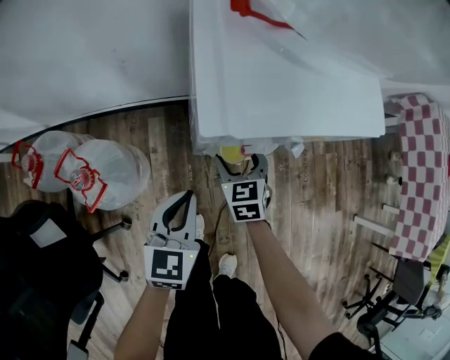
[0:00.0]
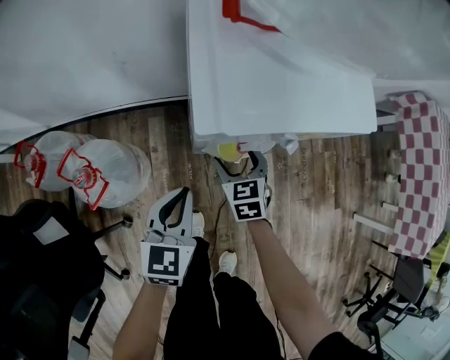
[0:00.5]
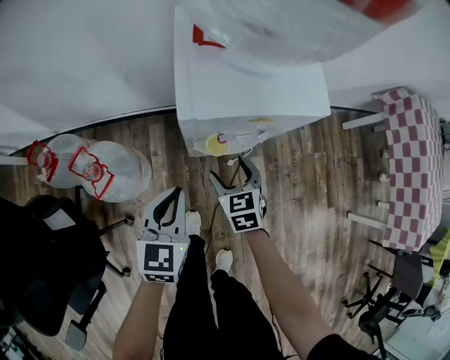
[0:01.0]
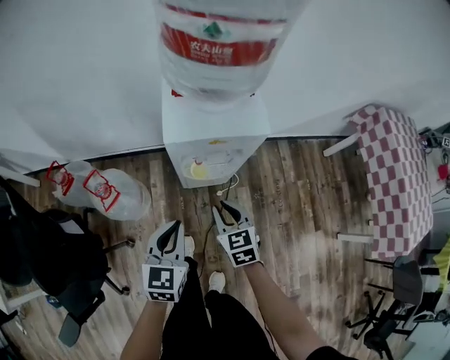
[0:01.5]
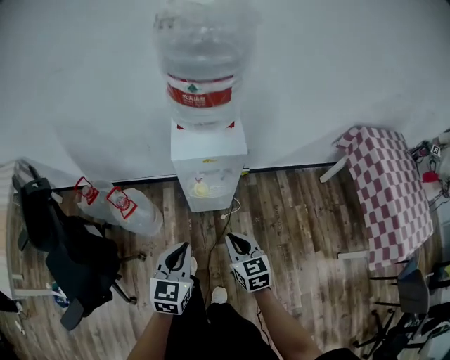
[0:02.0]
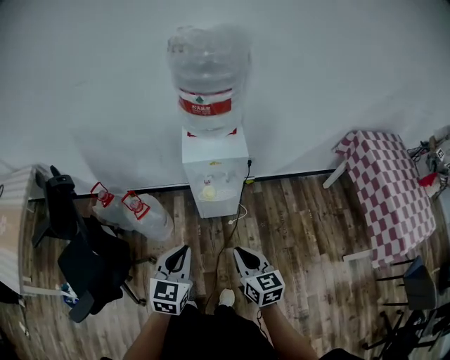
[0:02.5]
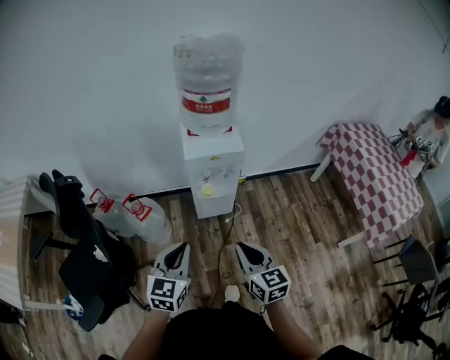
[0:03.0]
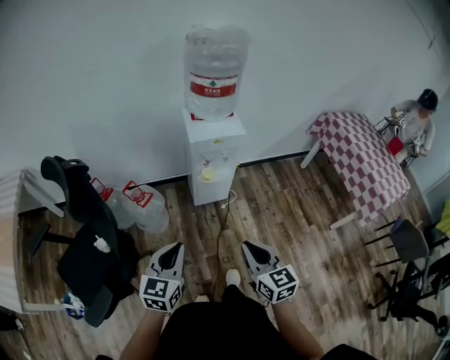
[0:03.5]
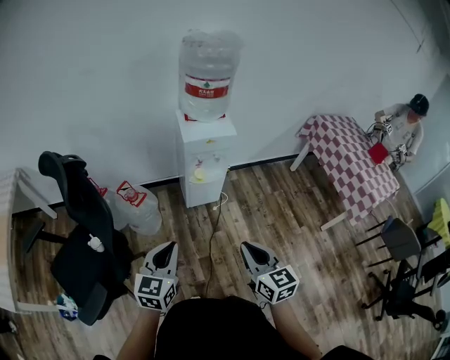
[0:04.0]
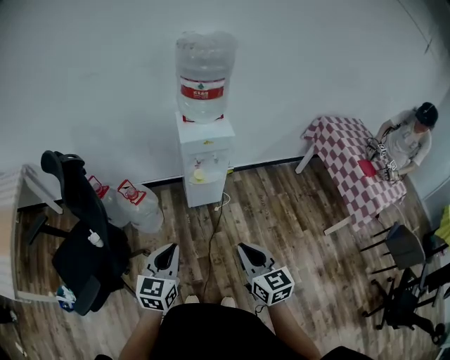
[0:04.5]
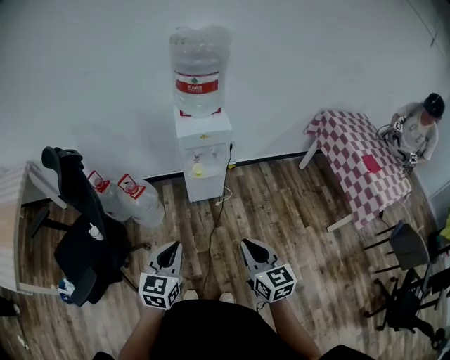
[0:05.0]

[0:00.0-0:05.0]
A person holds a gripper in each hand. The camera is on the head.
0:00.0 to 0:02.5: Both grippers move upward and backward, roughly 50 cm. The right gripper turns by some 30 degrees, and closes its fingers.
0:02.5 to 0:05.0: The two grippers go about 20 cm backward.

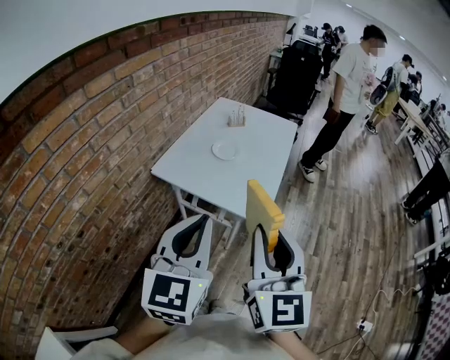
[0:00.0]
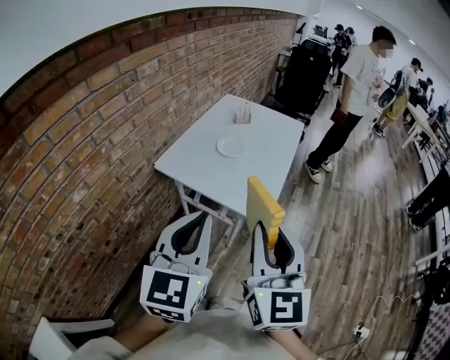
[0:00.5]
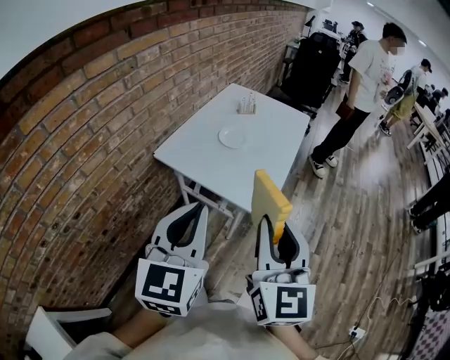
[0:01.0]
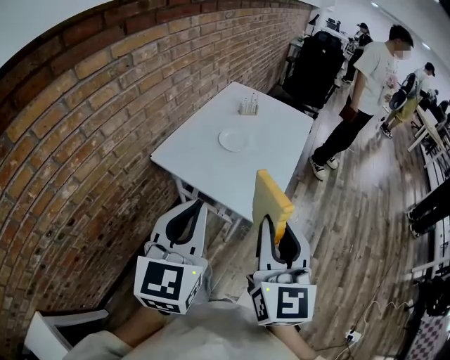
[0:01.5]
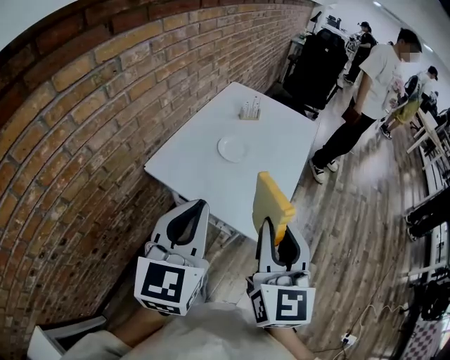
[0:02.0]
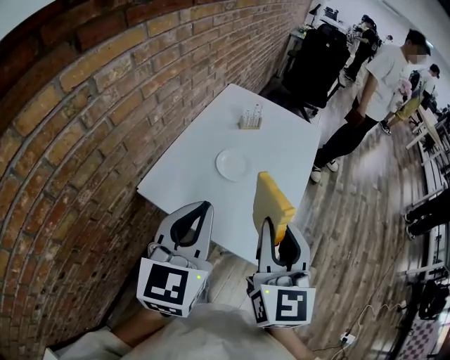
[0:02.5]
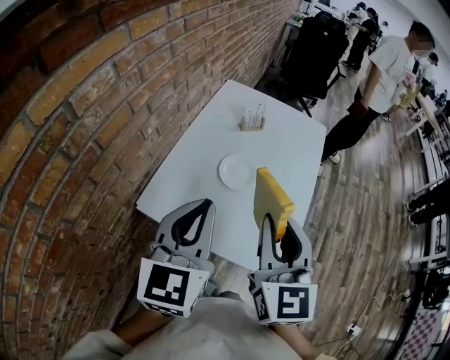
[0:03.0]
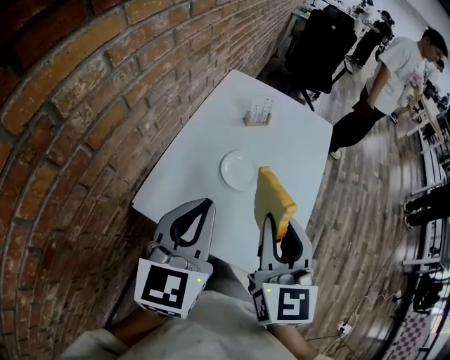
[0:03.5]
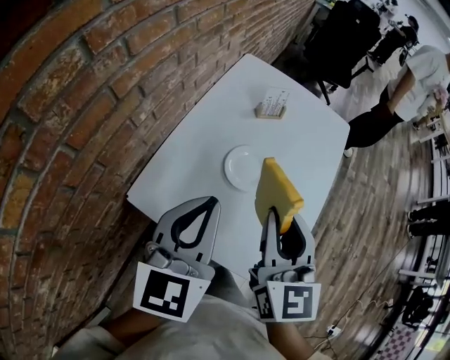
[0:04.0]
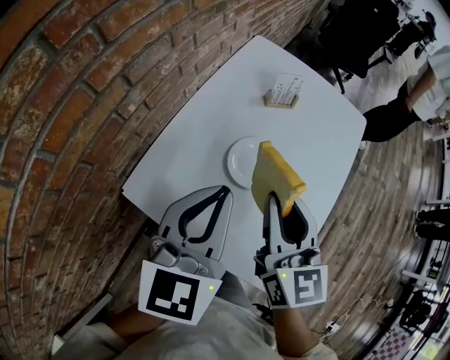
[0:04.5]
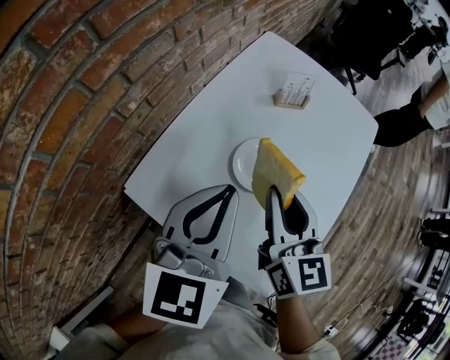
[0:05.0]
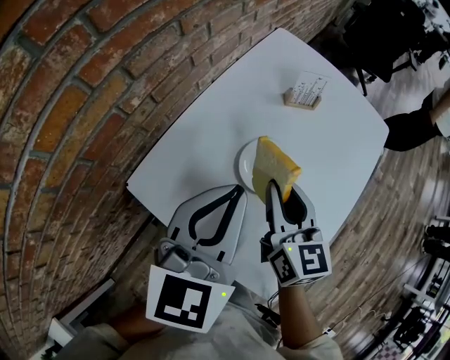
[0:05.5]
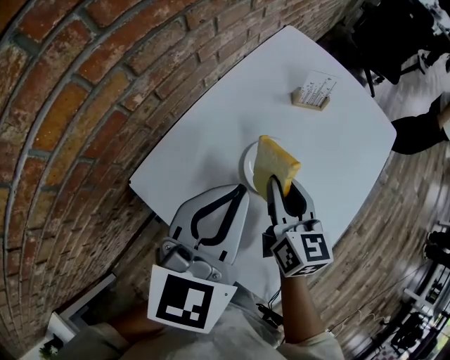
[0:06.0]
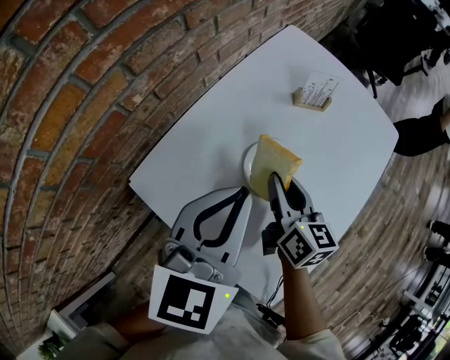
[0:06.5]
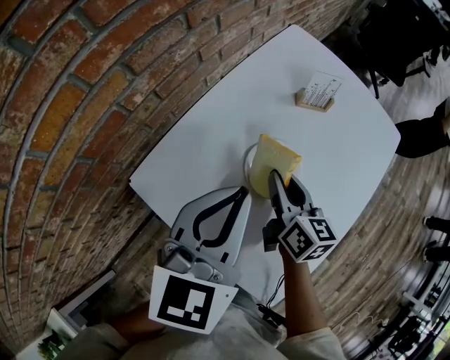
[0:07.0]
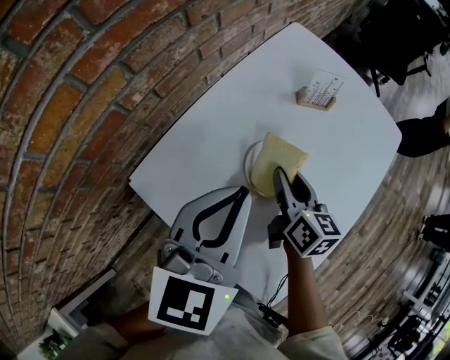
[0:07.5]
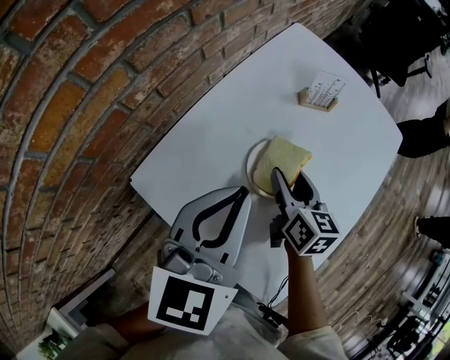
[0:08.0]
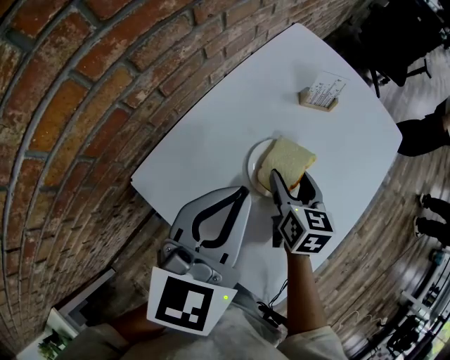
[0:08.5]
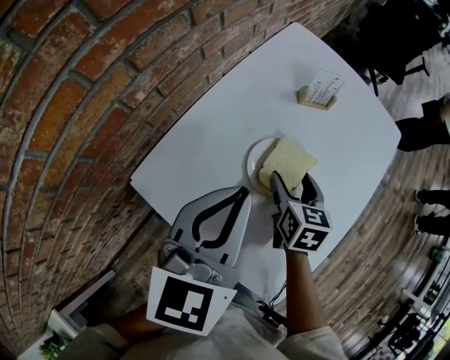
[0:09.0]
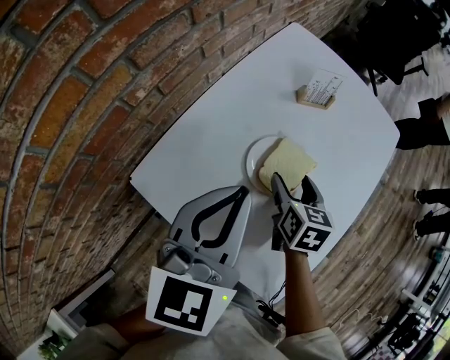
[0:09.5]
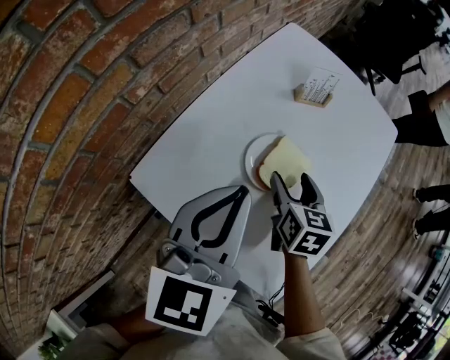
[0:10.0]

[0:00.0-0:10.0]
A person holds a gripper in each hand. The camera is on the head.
0:00.0 to 0:02.0: The two grippers go roughly 15 cm forward.
0:02.0 to 0:04.0: The two grippers go roughly 25 cm forward.
0:04.0 to 0:06.0: The right gripper moves downward and forward, roughly 20 cm, and rotates some 30 degrees. Meanwhile the left gripper shifts approximately 5 cm forward.
0:06.0 to 0:08.0: The right gripper is displaced downward by some 5 cm, and opens up.
0:08.0 to 0:10.0: There are only small adjustments of the grippers.

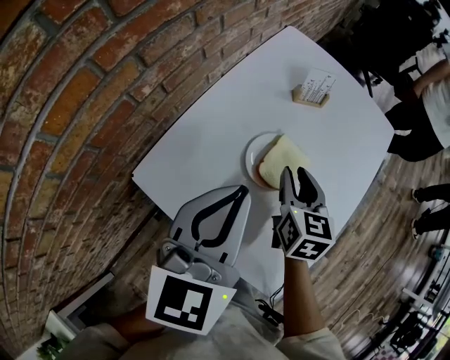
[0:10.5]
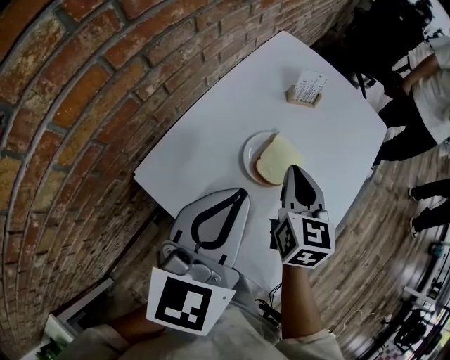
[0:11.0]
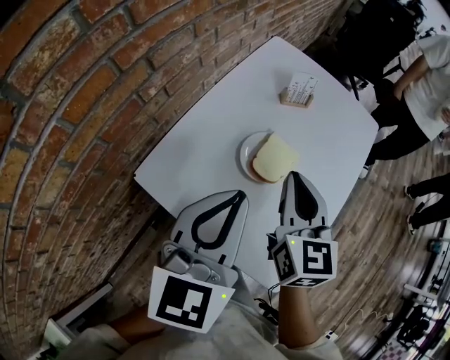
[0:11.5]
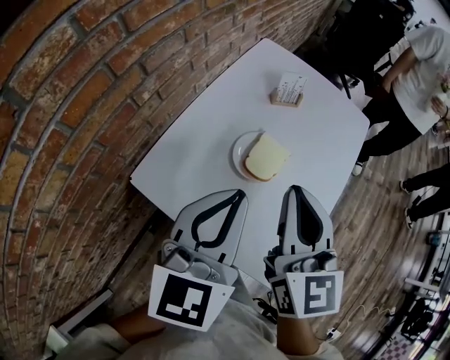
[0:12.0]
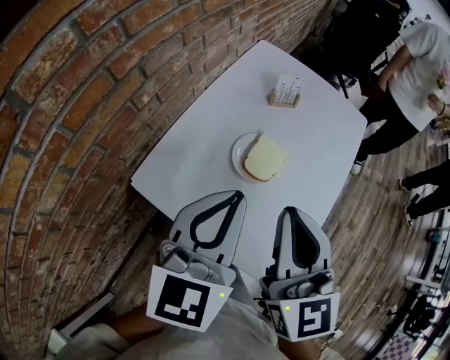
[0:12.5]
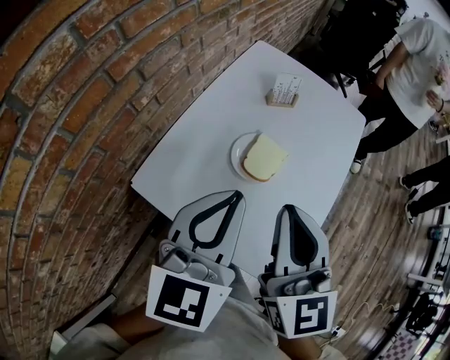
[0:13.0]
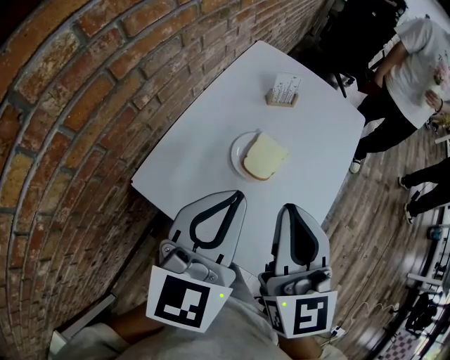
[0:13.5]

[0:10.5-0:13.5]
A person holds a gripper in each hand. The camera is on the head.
0:10.5 to 0:12.0: The left gripper ends up roughly 5 cm from where it was. The right gripper heads upward and backward, covering some 20 cm, swivels about 20 degrees, and closes up.
0:12.0 to 0:13.5: The grippers stay close to where they were, moving slightly.

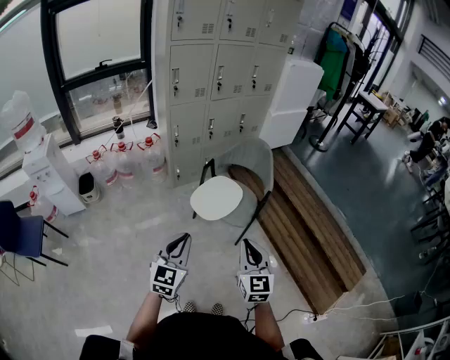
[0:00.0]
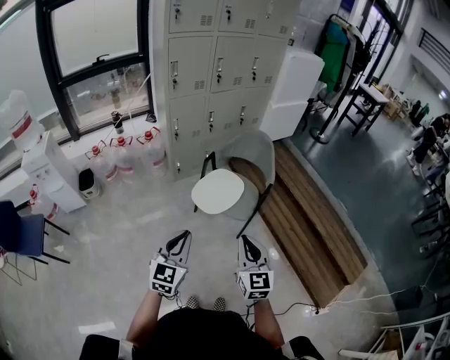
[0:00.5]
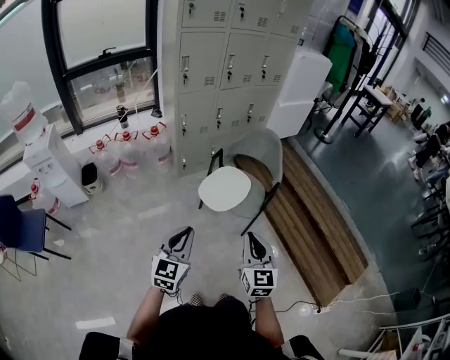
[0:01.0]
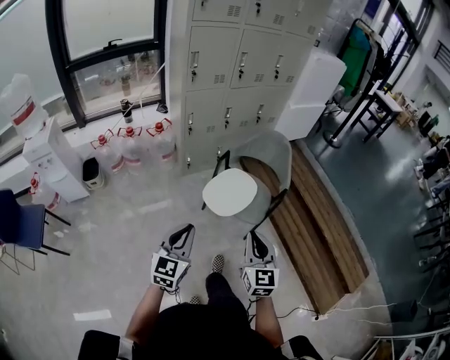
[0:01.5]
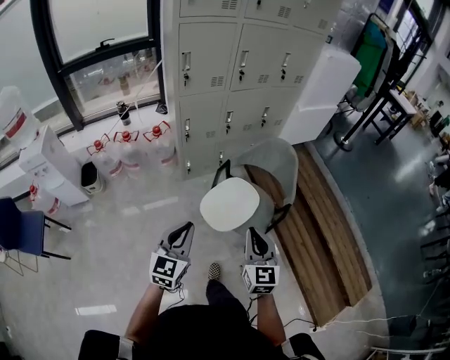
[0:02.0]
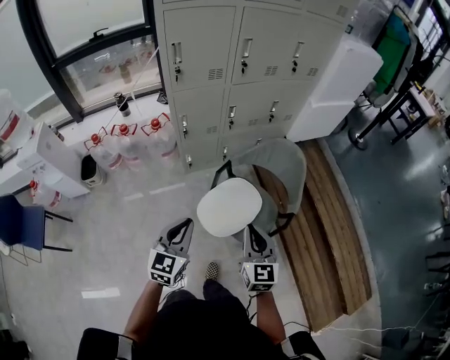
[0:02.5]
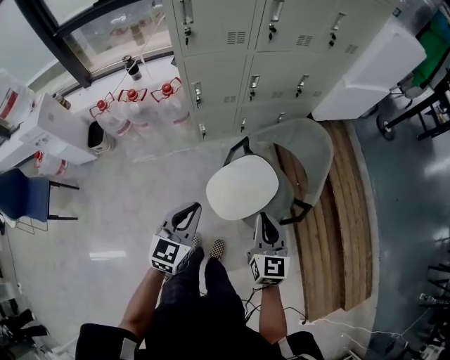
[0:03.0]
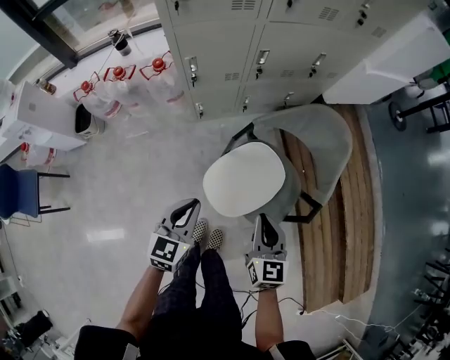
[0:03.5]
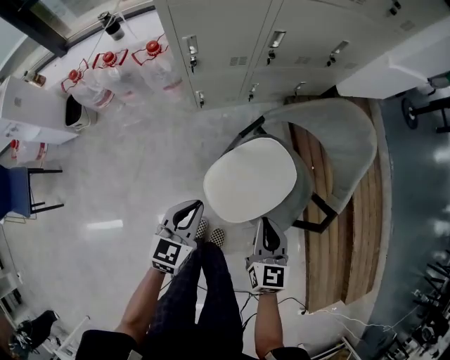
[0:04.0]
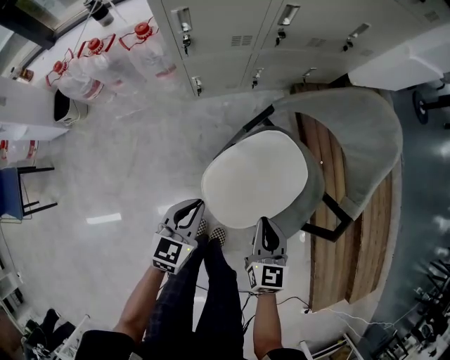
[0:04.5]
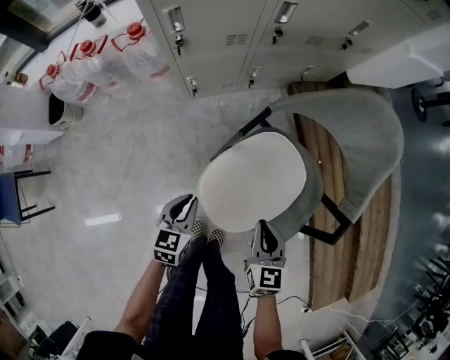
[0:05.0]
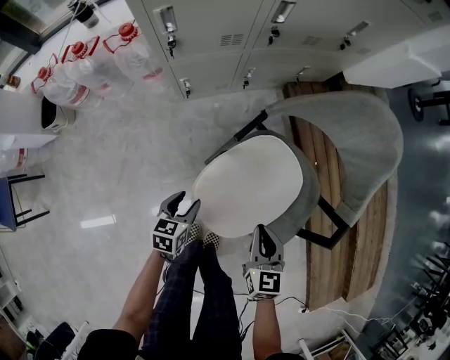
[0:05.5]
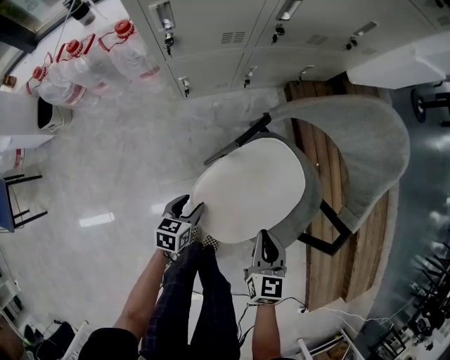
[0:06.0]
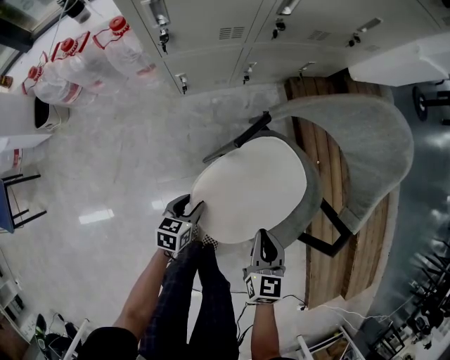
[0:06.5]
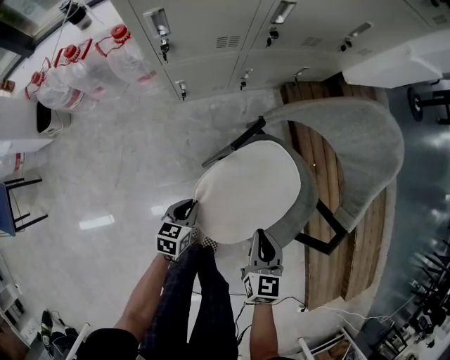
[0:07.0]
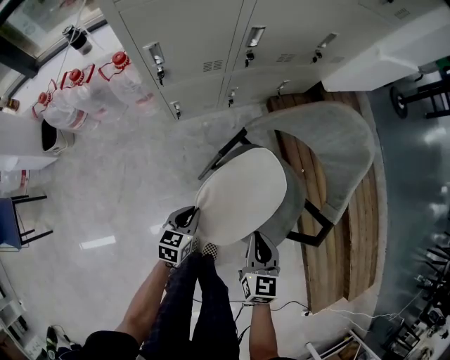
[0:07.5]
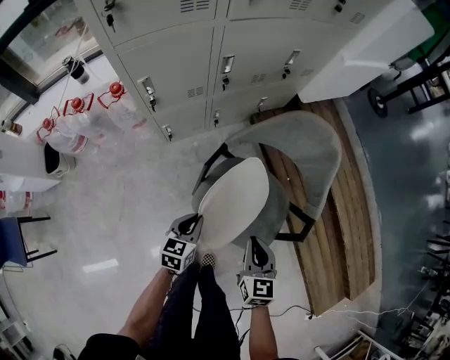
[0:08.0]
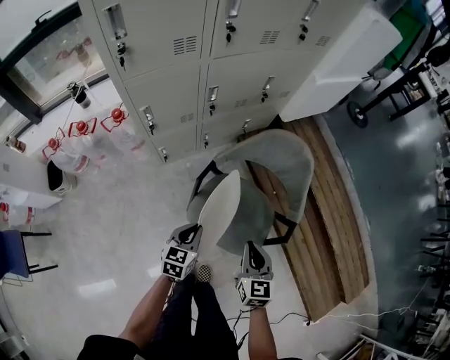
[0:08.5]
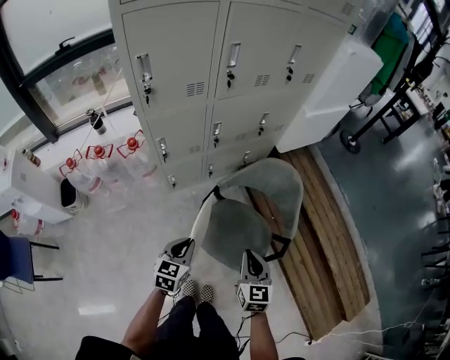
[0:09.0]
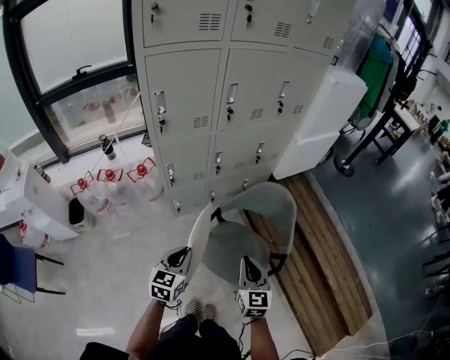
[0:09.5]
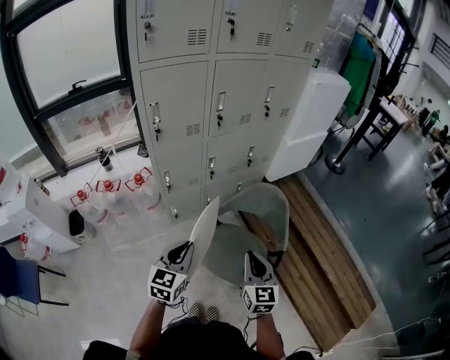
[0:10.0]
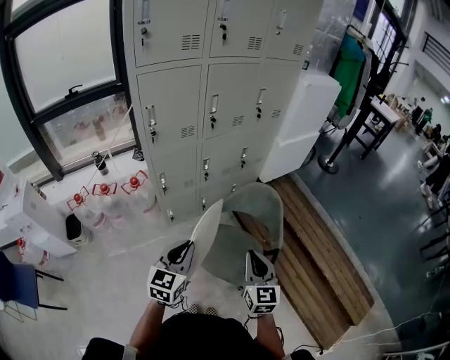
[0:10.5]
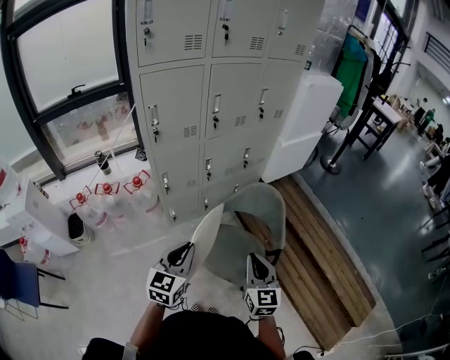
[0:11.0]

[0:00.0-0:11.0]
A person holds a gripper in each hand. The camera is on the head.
0:00.0 to 0:02.0: Both grippers move forward, approximately 25 cm.
0:02.0 to 0:03.5: The grippers both shift forward and downward by some 30 cm.
0:03.5 to 0:05.5: The grippers both shift downward by some 30 cm. The left gripper rotates about 30 degrees, and opens its fingers.
0:05.5 to 0:07.5: Both grippers move upward, roughly 5 cm. The left gripper closes.
0:07.5 to 0:09.0: Both grippers travel together upward, about 30 cm.
0:09.0 to 0:11.0: The left gripper moves upward, roughly 25 cm, and changes its angle by about 20 degrees. Meanwhile the right gripper travels upward and backward by about 20 cm.
